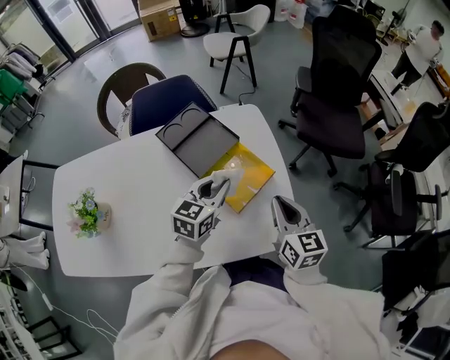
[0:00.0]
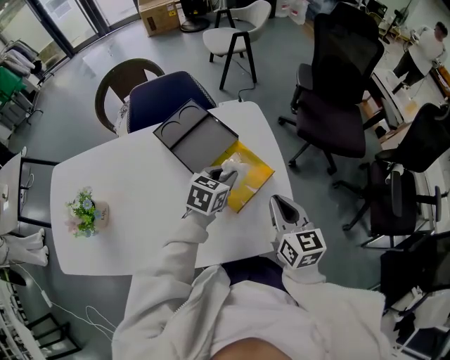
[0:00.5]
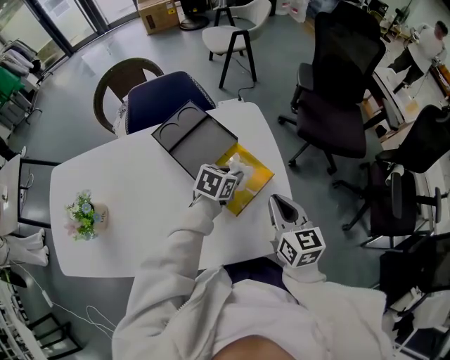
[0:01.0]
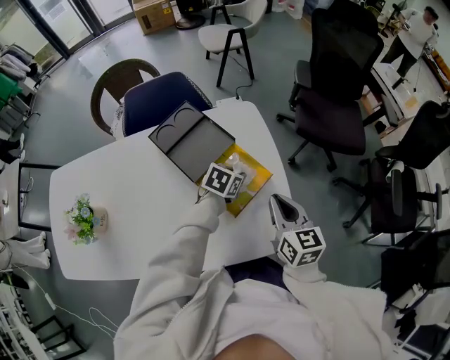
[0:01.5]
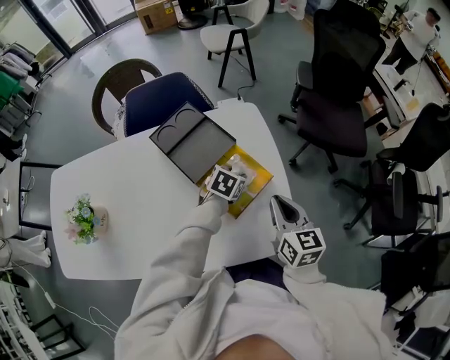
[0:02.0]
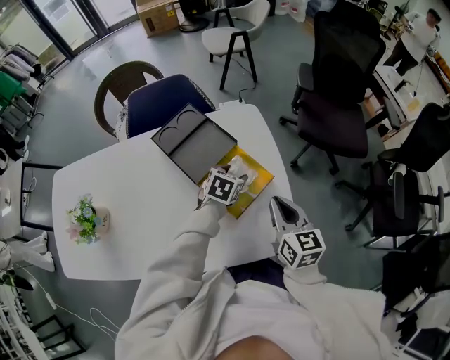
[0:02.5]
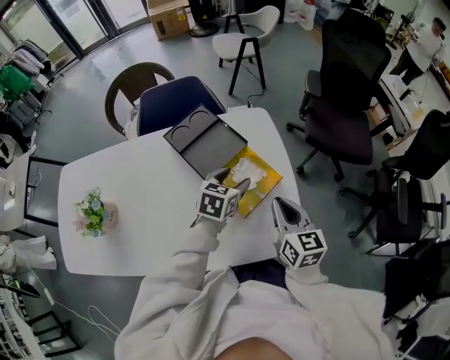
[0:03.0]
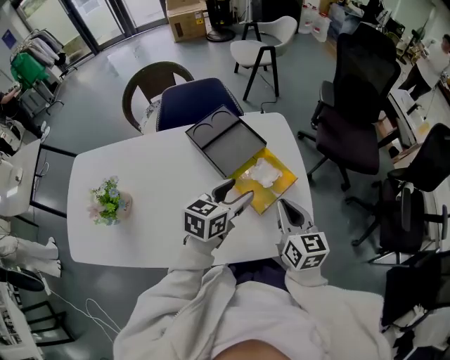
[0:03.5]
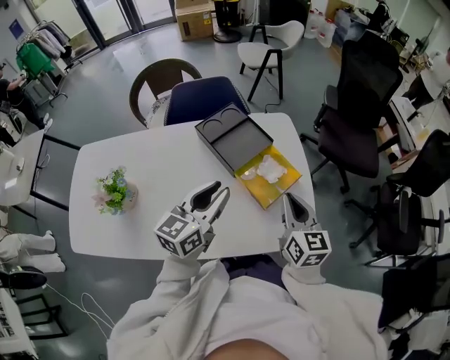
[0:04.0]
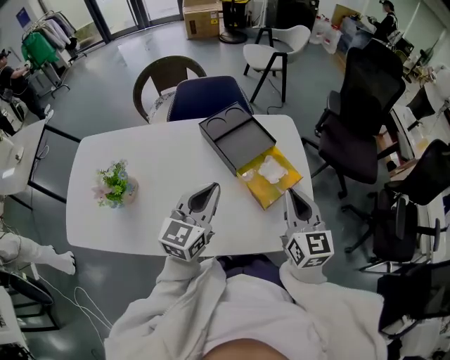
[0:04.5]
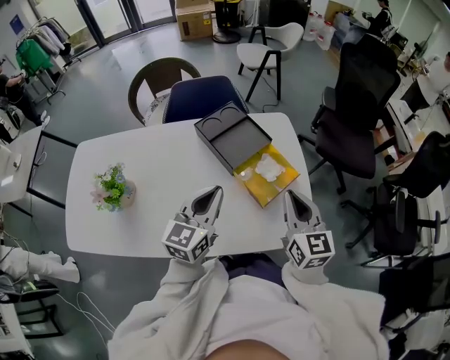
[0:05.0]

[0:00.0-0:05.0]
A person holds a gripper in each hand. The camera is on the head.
0:00.0 to 0:02.5: The left gripper travels downward and forward by approximately 15 cm, changes its angle by some 30 degrees, and opens its fingers.
0:02.5 to 0:05.0: The left gripper goes approximately 30 cm upward, backward and to the left, points its fingers roughly 40 degrees further upward, and closes up, while the right gripper heads upward and to the left, covering some 10 cm.

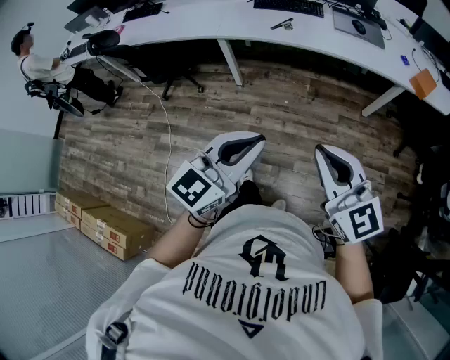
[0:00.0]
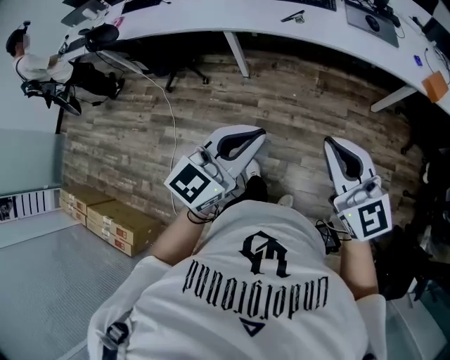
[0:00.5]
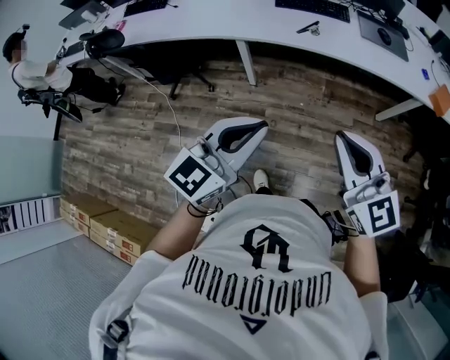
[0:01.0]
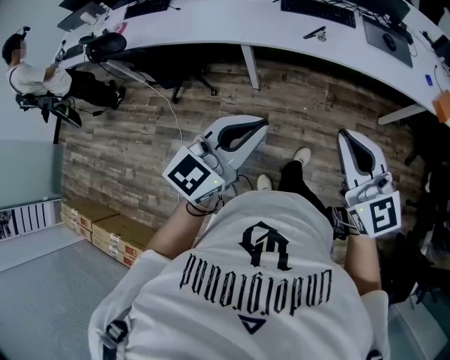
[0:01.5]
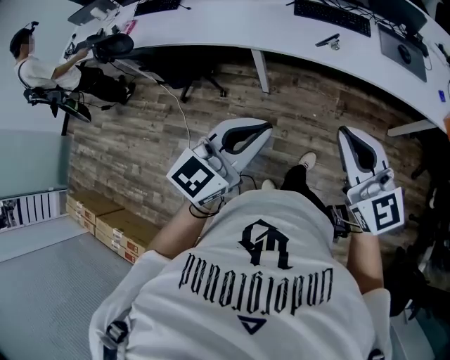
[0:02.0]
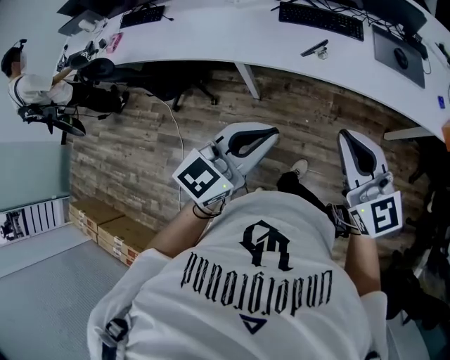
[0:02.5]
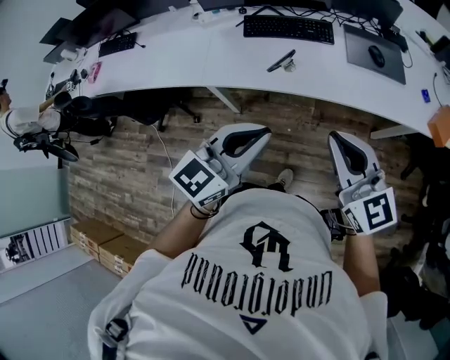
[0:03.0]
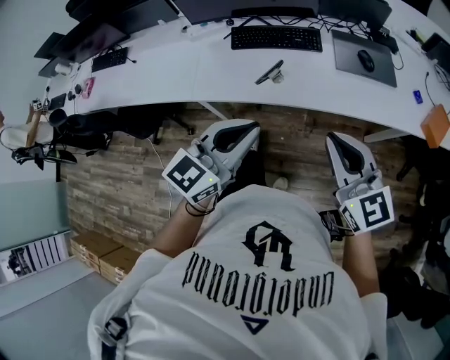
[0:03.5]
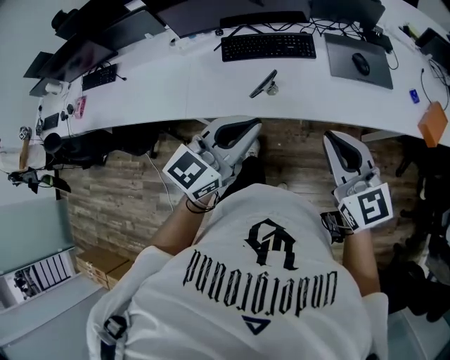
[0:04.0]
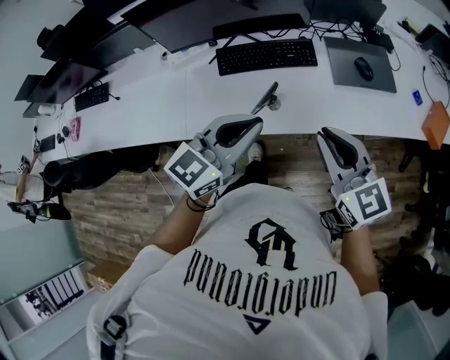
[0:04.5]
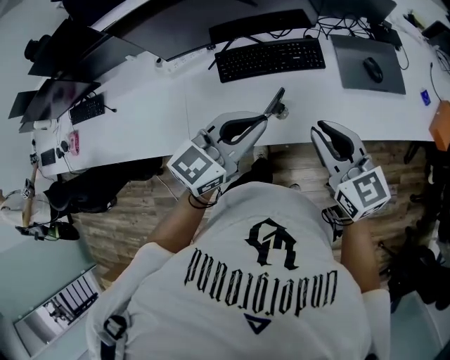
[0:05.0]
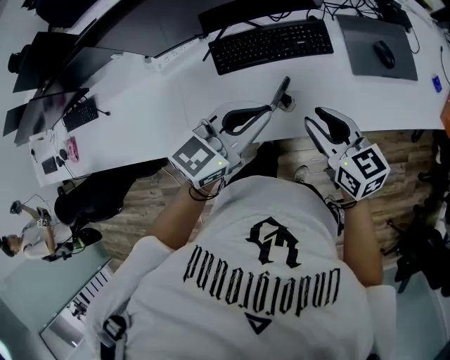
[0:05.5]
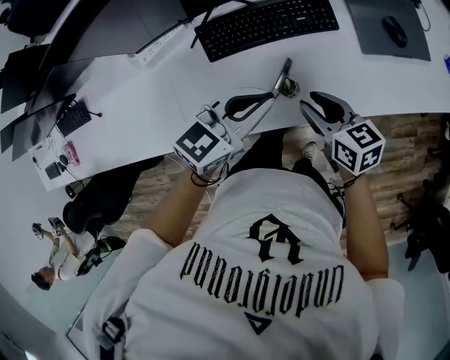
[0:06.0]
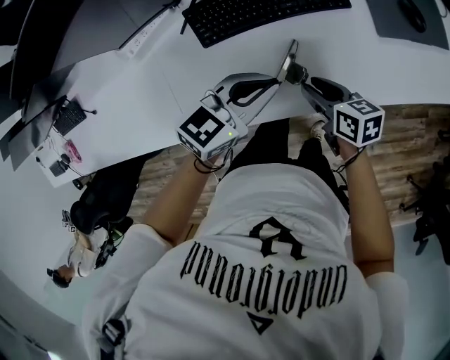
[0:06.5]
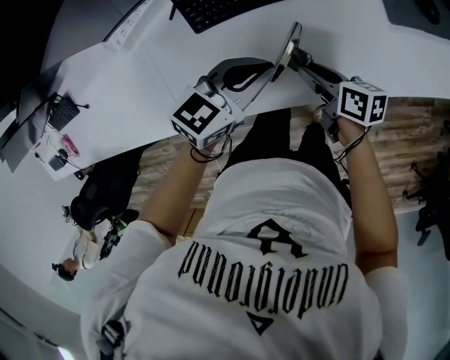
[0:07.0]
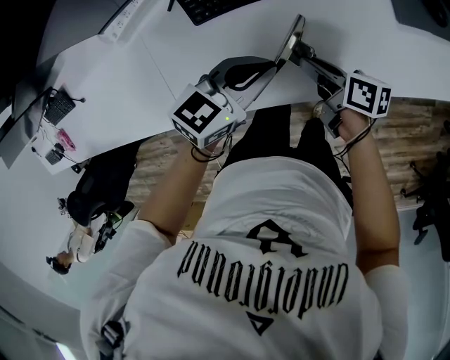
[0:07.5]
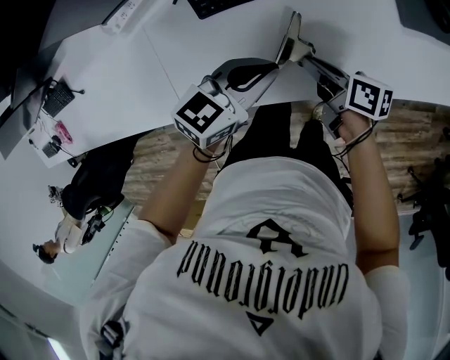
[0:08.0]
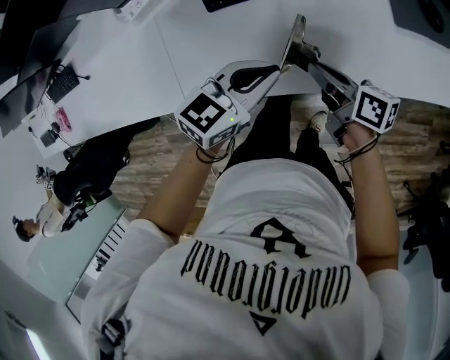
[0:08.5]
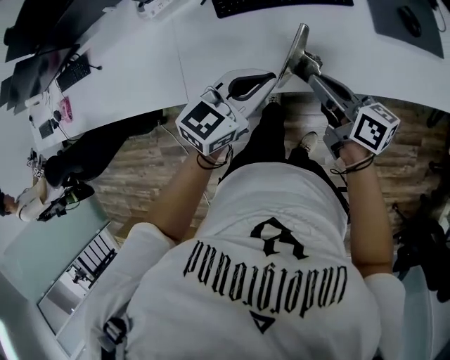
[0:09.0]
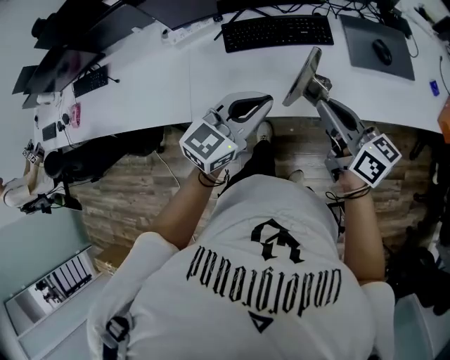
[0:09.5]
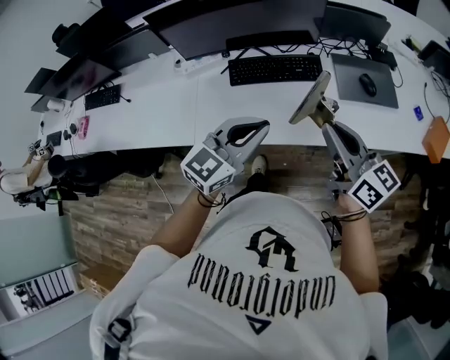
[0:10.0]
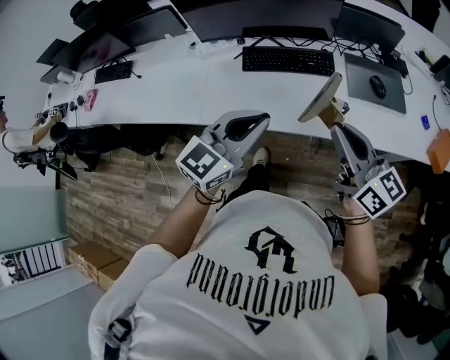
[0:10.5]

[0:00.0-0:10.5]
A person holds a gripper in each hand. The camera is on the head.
0:00.0 to 0:02.0: The grippers both shift forward and to the left by about 30 cm.
0:02.0 to 0:04.0: Both grippers move forward and to the right, some 40 cm.
0:04.0 to 0:06.5: The left gripper moves forward and downward, about 35 cm, and swivels roughly 40 degrees. The right gripper moves downward, forward and to the left, about 50 cm, rotates around the line of its fingers by roughly 50 degrees, clockwise from behind, and opens.
0:06.5 to 0:08.5: The left gripper goes approximately 5 cm backward. Meanwhile the right gripper turns by some 30 degrees, and closes.
0:08.5 to 0:10.5: The two grippers go roughly 30 cm upward and backward. The right gripper rolls counterclockwise, seen from behind, by roughly 50 degrees; the left gripper swivels about 40 degrees.

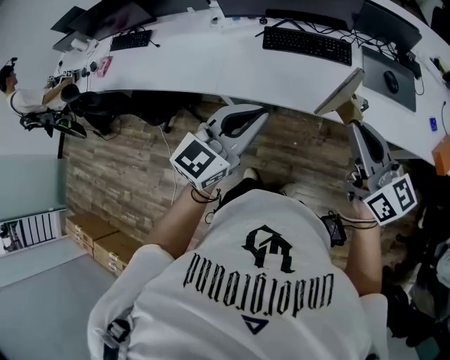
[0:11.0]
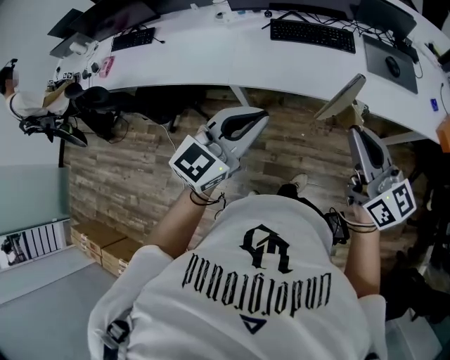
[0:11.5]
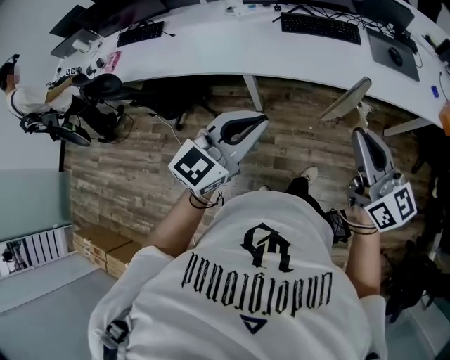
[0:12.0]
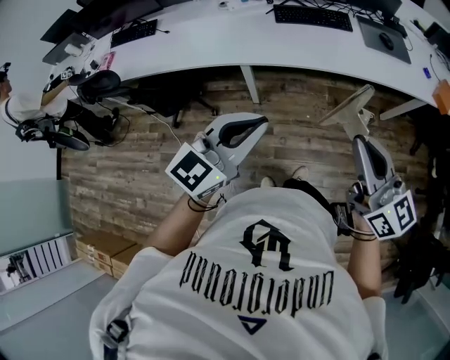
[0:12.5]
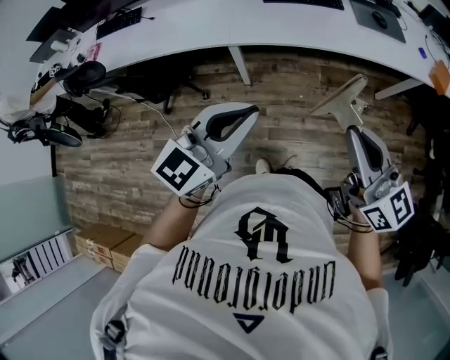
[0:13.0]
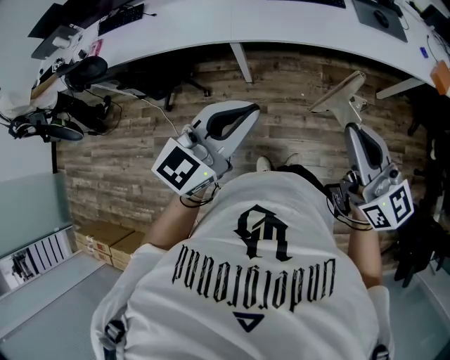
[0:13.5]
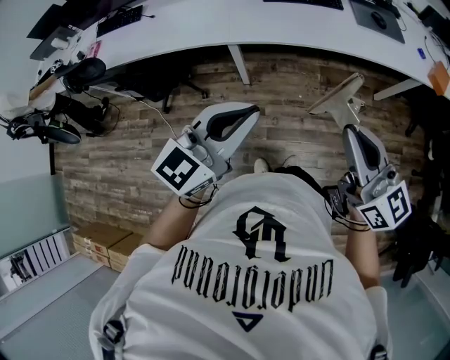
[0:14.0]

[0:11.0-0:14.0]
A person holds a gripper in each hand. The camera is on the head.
0:11.0 to 0:12.5: Both grippers travel together backward and to the left, roughly 30 cm.
0:12.5 to 0:14.0: The grippers make only small movements.

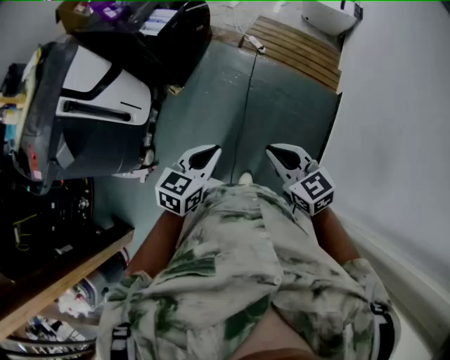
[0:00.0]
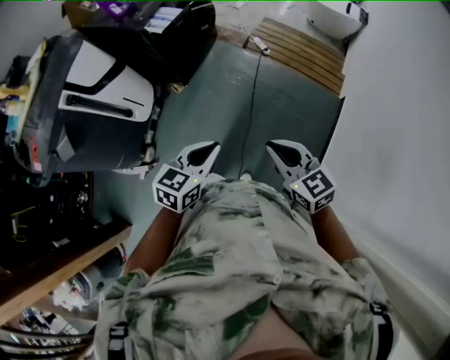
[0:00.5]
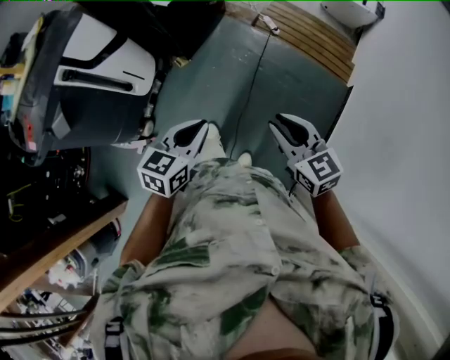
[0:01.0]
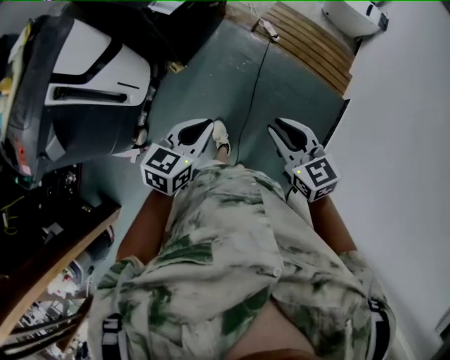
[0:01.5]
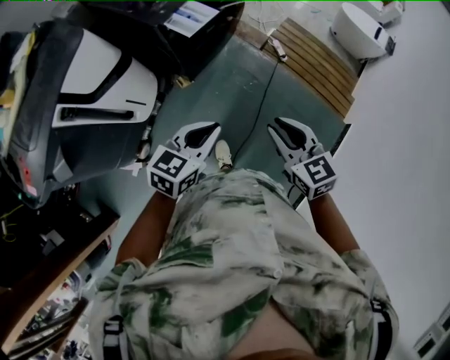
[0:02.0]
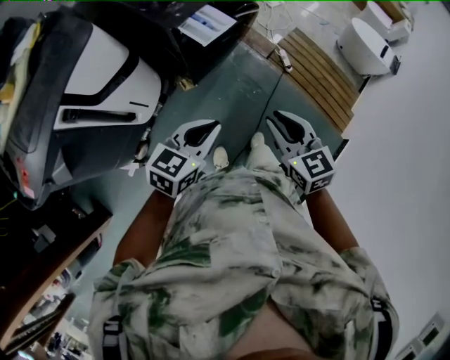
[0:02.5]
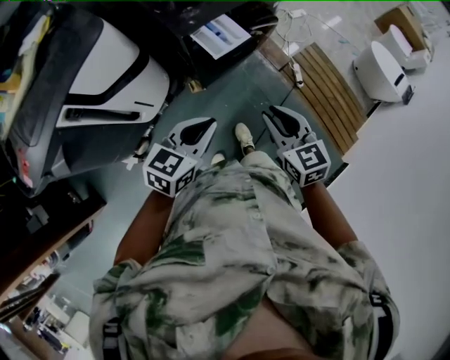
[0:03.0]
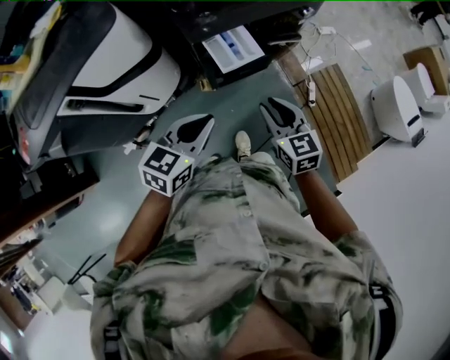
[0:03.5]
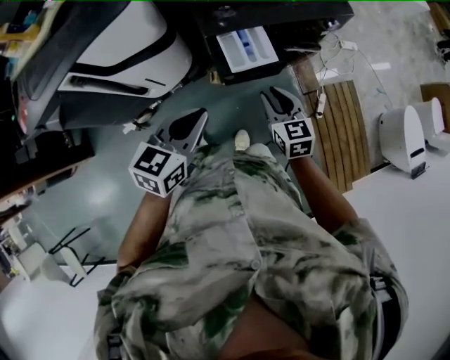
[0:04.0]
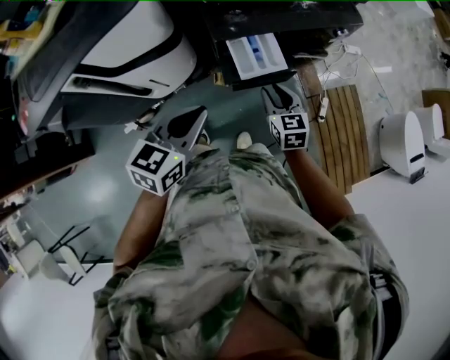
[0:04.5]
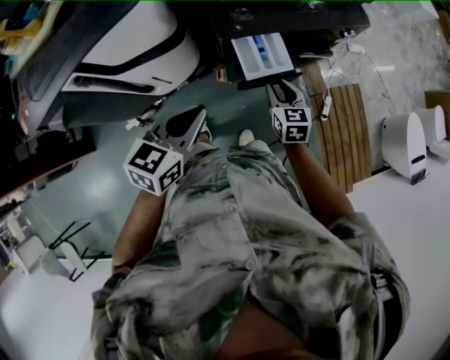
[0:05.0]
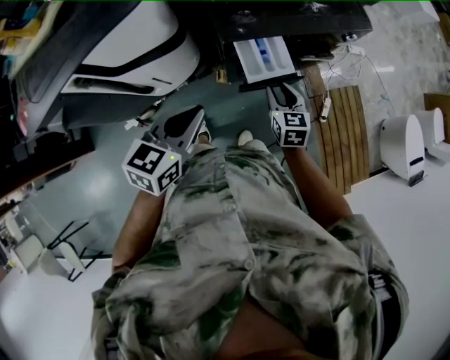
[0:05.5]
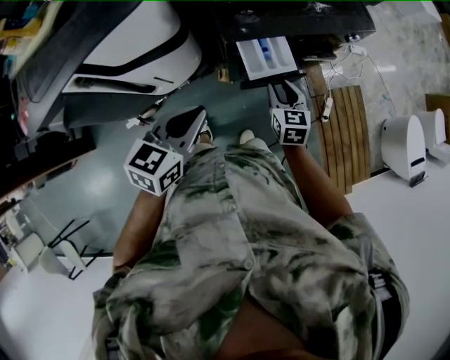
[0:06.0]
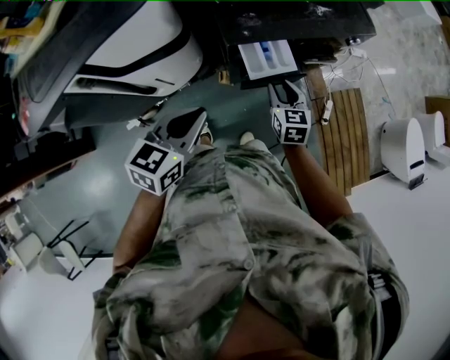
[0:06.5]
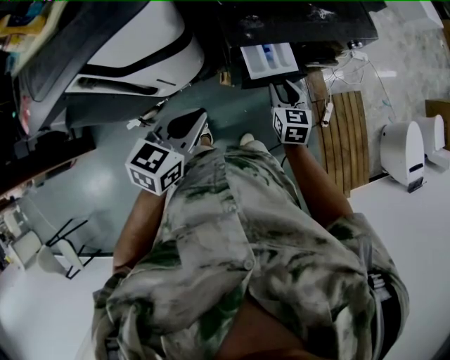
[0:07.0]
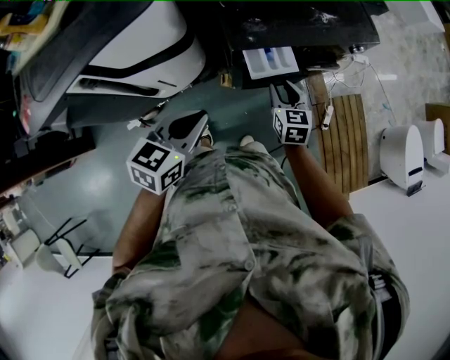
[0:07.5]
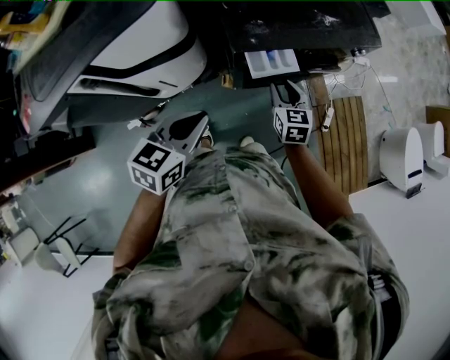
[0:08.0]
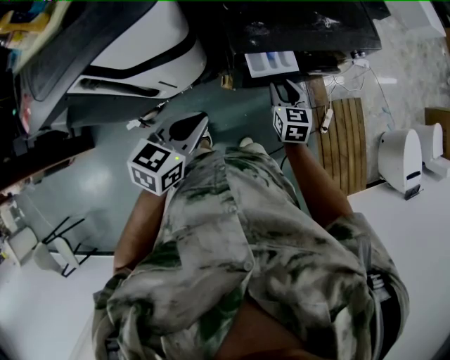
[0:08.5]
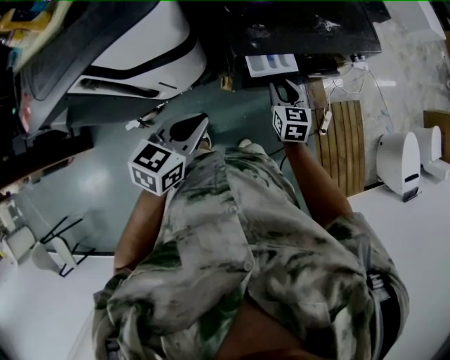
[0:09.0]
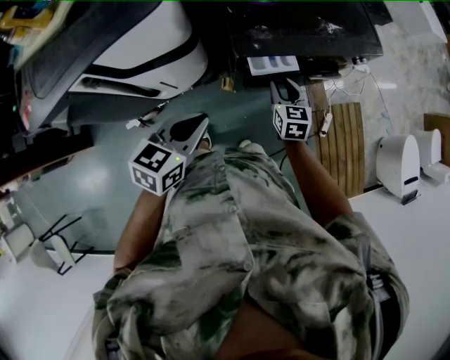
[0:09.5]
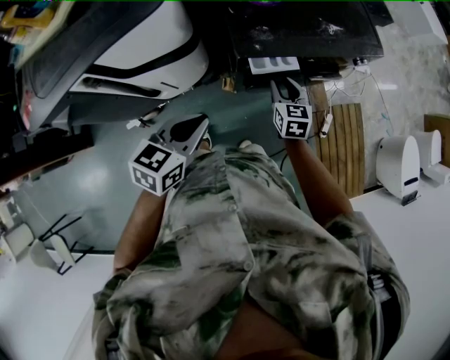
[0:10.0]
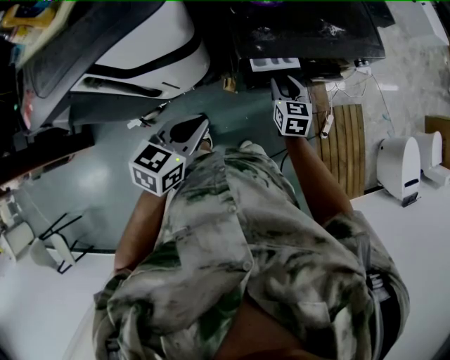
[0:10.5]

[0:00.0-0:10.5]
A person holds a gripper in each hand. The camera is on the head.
0:00.0 to 0:02.0: The left gripper moves forward and to the left, about 30 cm; the right gripper is displaced forward by roughly 30 cm.
0:02.0 to 0:04.0: The left gripper ends up approximately 25 cm from where it was, and rotates about 40 degrees; the right gripper changes place by roughly 40 cm, and rotates about 20 degrees.
0:04.0 to 0:06.5: The right gripper heads forward and downward, covering approximately 10 cm, while the left gripper shifts about 5 cm to the left.
0:06.5 to 0:08.5: The grippers stay close to where they were, moving slightly.
0:08.5 to 0:10.5: There are only small adjustments of the grippers.
